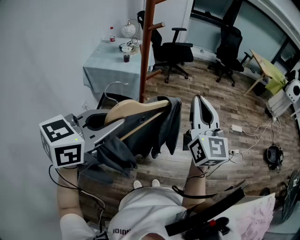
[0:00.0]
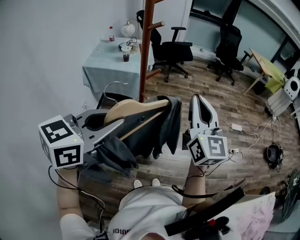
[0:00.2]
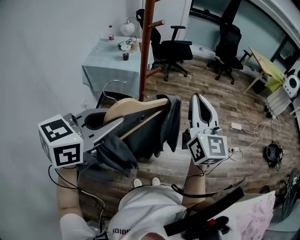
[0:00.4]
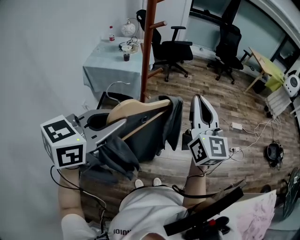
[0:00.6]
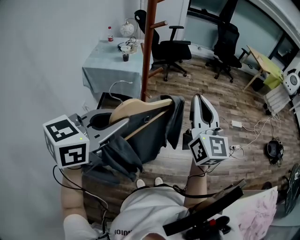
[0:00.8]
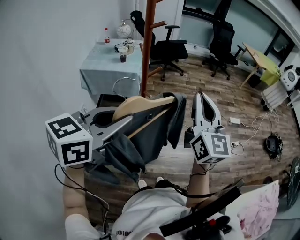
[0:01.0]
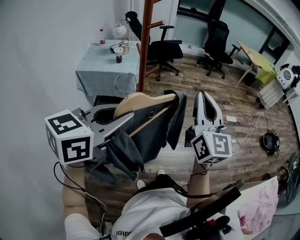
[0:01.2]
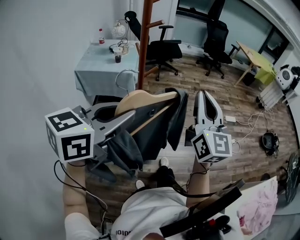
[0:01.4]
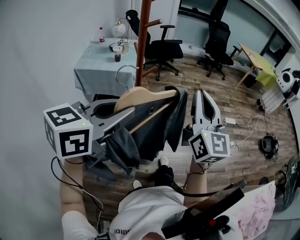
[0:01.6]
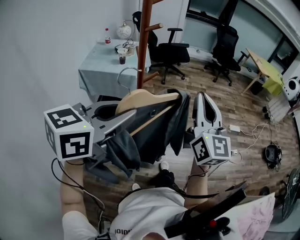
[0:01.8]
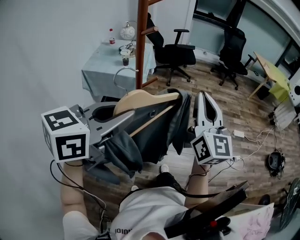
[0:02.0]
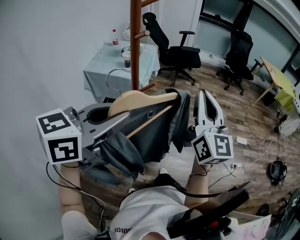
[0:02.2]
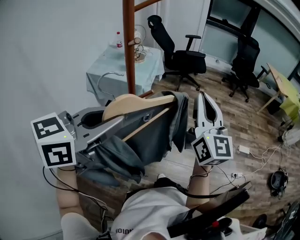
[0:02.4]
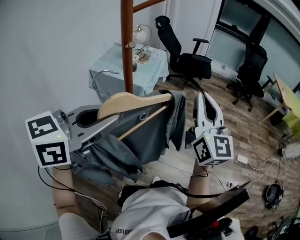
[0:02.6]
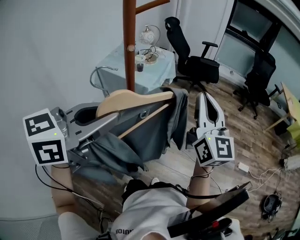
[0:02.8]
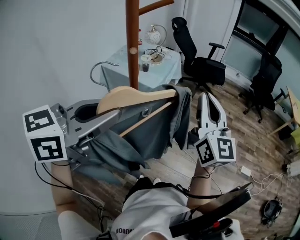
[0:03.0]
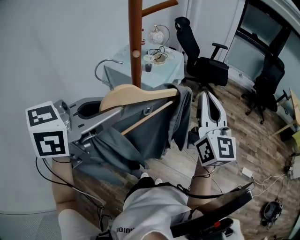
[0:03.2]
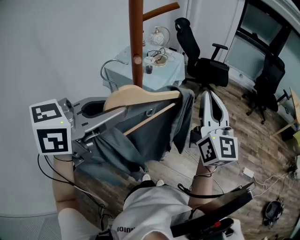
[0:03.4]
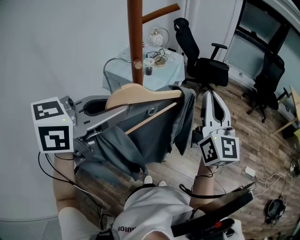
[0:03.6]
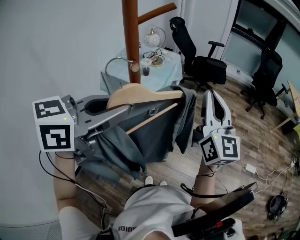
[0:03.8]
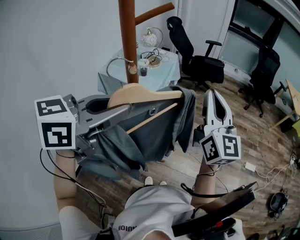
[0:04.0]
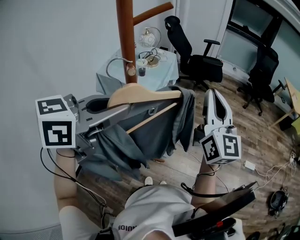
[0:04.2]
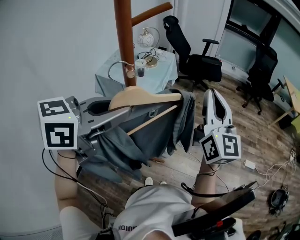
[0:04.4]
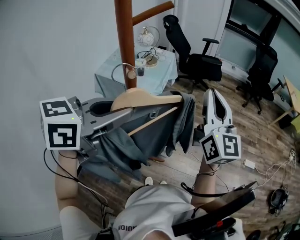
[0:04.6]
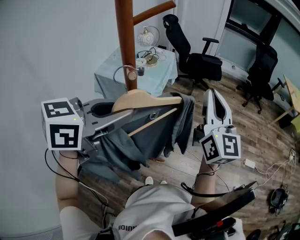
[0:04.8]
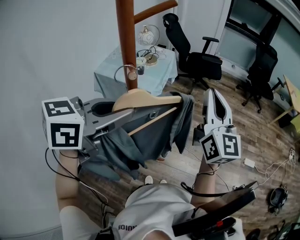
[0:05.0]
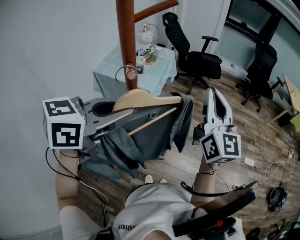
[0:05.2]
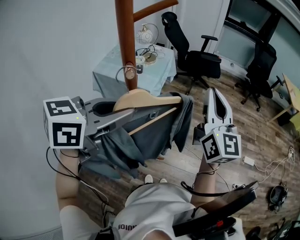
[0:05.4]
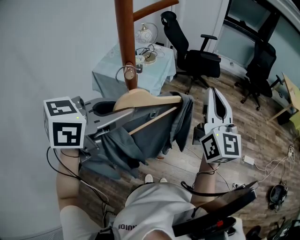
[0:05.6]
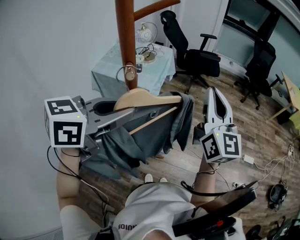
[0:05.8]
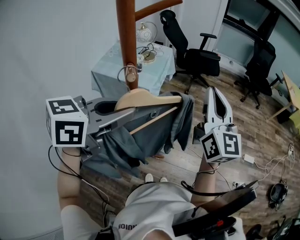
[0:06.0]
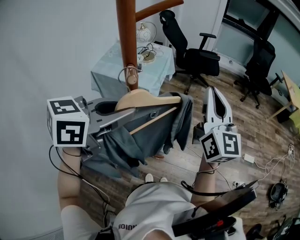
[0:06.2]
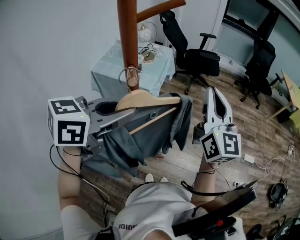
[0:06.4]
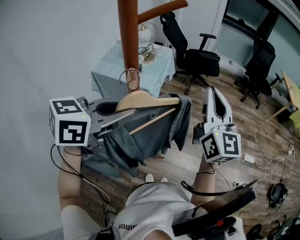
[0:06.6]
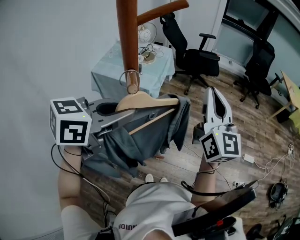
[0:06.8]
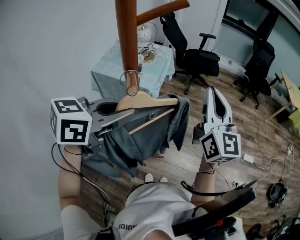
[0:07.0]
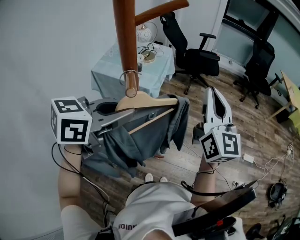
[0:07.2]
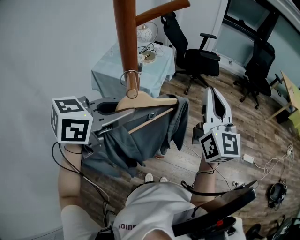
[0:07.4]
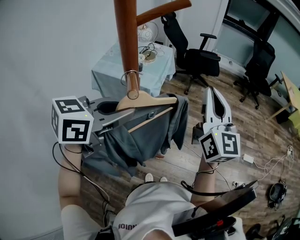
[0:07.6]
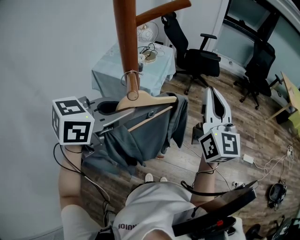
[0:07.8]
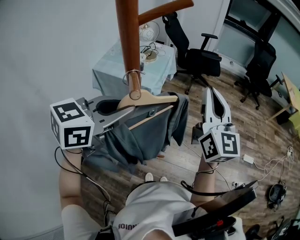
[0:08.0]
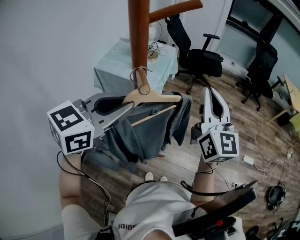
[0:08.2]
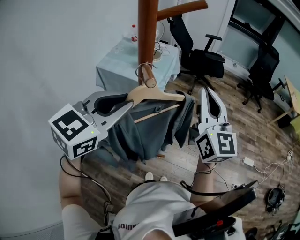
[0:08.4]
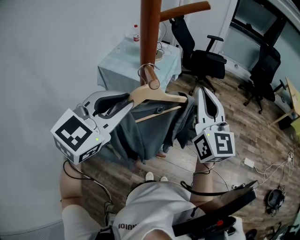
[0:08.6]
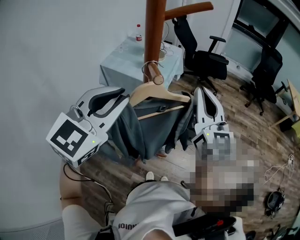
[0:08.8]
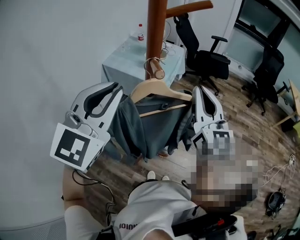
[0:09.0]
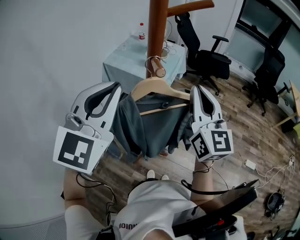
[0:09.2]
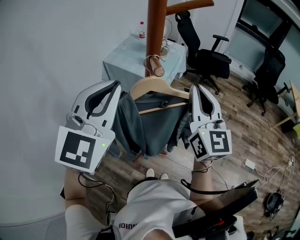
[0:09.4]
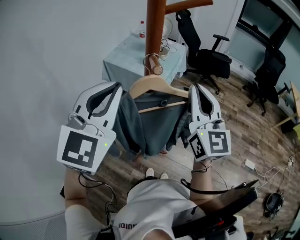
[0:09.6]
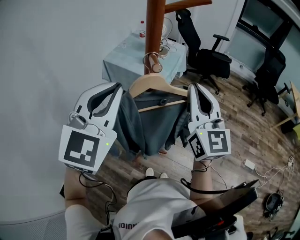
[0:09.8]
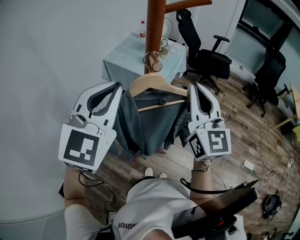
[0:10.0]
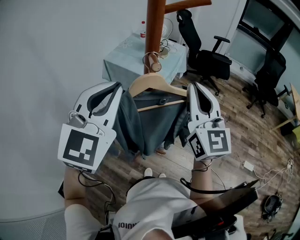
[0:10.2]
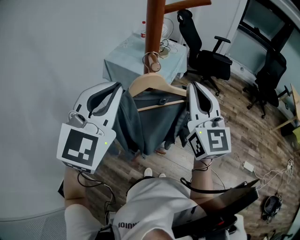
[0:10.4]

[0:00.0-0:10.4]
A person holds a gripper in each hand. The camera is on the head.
0.0 to 1.4 s: There are only small adjustments of the grippers.
1.4 to 3.0 s: The left gripper shifts by roughly 15 cm, and changes its angle by roughly 20 degrees. Meanwhile the right gripper changes place by roughly 25 cm, and changes its angle by roughly 30 degrees.
3.0 to 4.4 s: The left gripper heads forward, covering about 5 cm.
4.4 to 6.0 s: The grippers move only a little.
6.0 to 7.4 s: Both grippers stay about where they are.
7.4 to 9.0 s: The left gripper goes about 5 cm upward, and rotates roughly 50 degrees. The right gripper shifts about 5 cm to the left.
9.0 to 10.4 s: The grippers make only small movements.

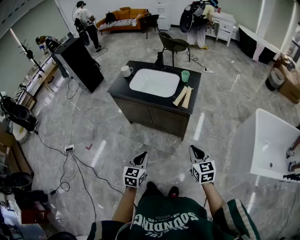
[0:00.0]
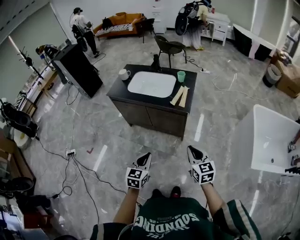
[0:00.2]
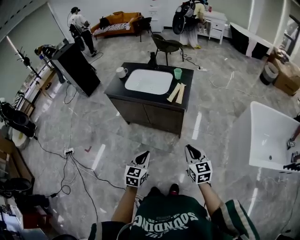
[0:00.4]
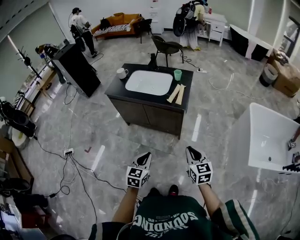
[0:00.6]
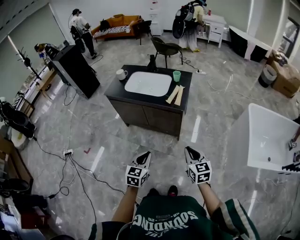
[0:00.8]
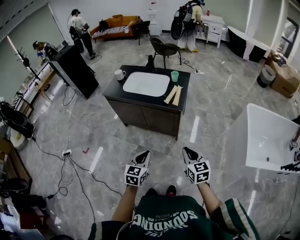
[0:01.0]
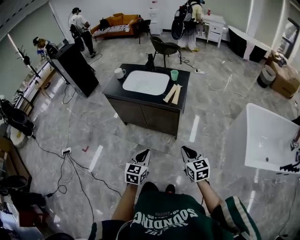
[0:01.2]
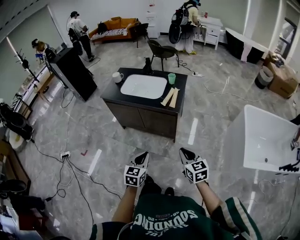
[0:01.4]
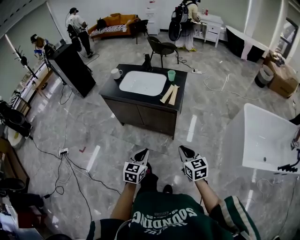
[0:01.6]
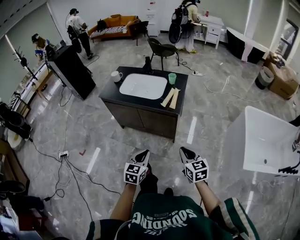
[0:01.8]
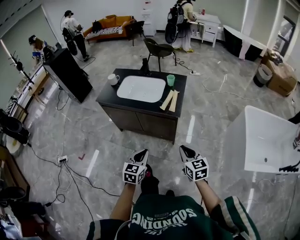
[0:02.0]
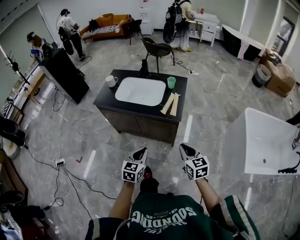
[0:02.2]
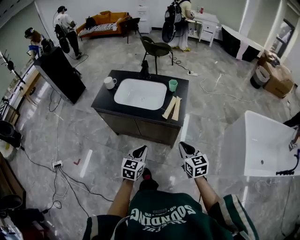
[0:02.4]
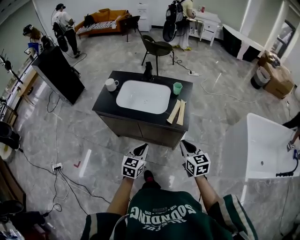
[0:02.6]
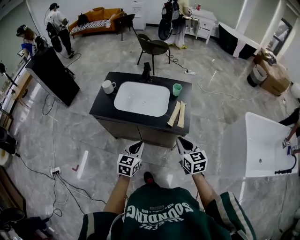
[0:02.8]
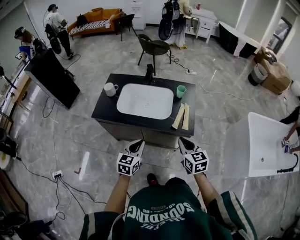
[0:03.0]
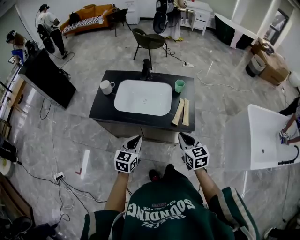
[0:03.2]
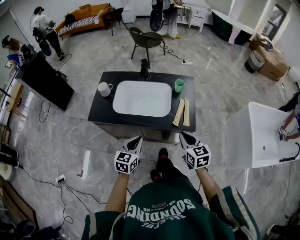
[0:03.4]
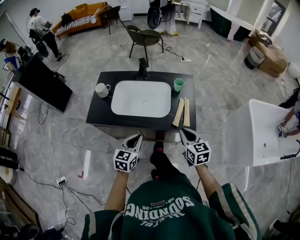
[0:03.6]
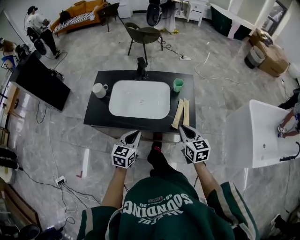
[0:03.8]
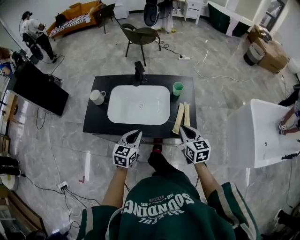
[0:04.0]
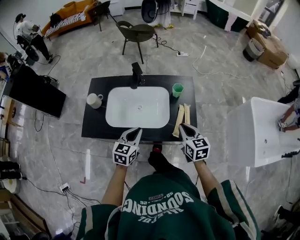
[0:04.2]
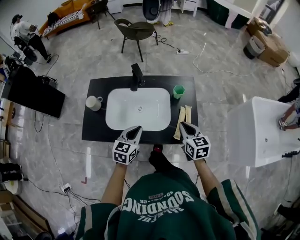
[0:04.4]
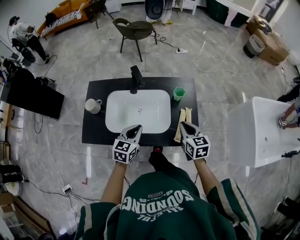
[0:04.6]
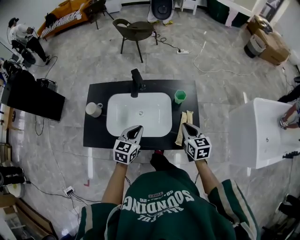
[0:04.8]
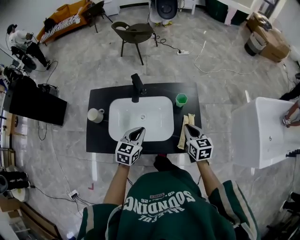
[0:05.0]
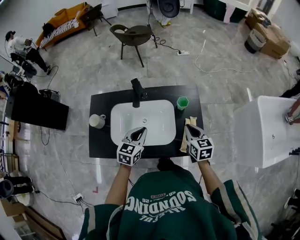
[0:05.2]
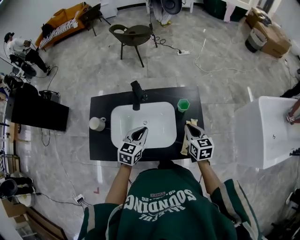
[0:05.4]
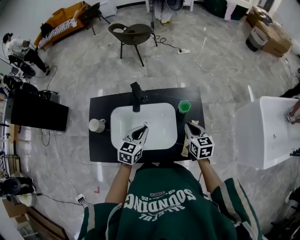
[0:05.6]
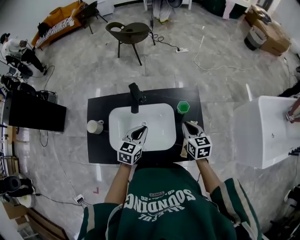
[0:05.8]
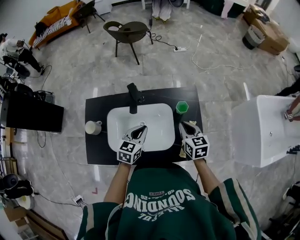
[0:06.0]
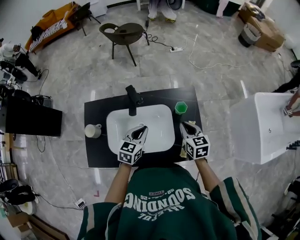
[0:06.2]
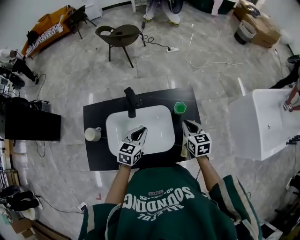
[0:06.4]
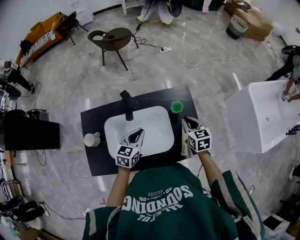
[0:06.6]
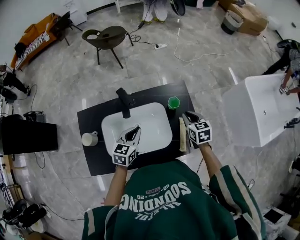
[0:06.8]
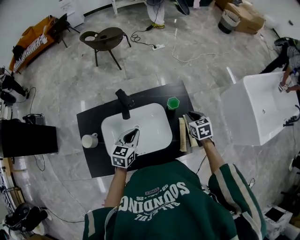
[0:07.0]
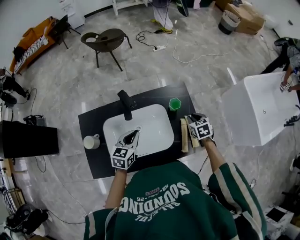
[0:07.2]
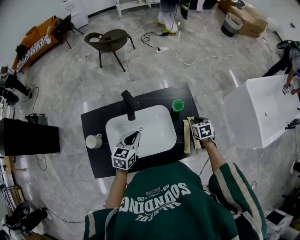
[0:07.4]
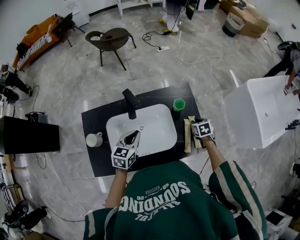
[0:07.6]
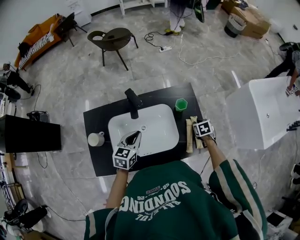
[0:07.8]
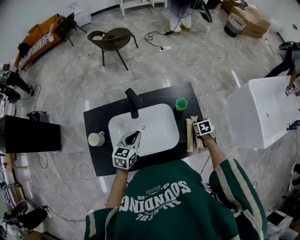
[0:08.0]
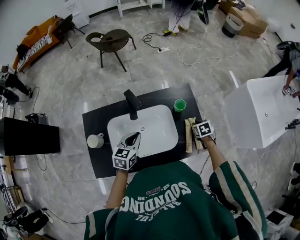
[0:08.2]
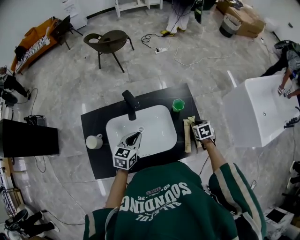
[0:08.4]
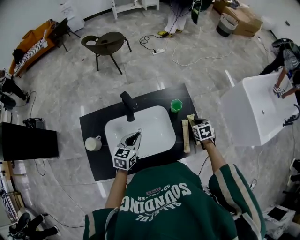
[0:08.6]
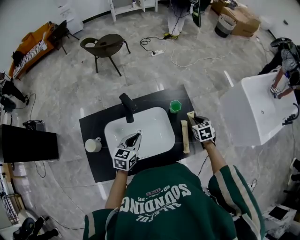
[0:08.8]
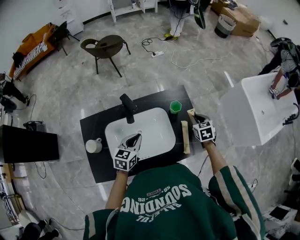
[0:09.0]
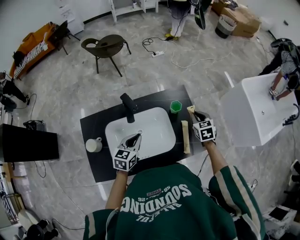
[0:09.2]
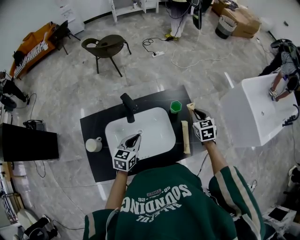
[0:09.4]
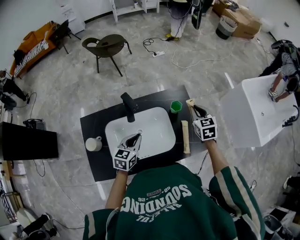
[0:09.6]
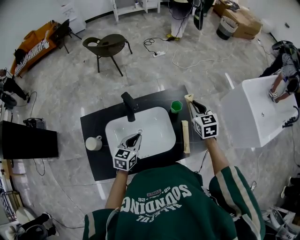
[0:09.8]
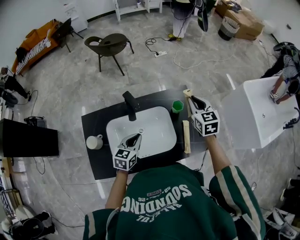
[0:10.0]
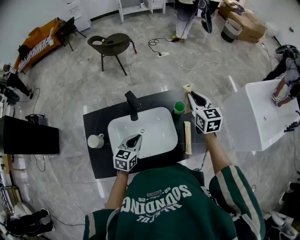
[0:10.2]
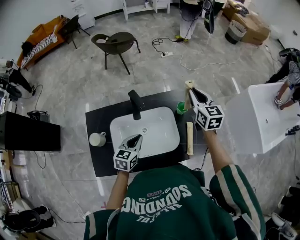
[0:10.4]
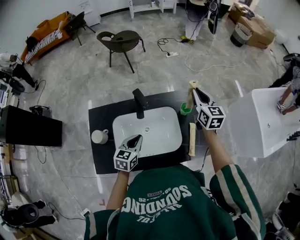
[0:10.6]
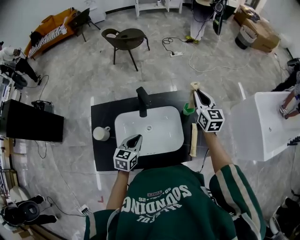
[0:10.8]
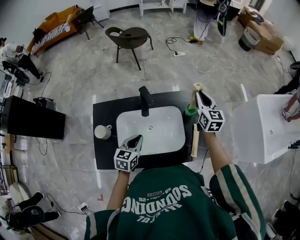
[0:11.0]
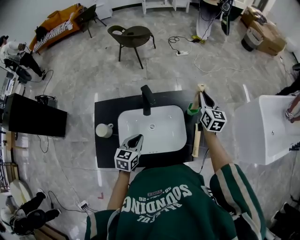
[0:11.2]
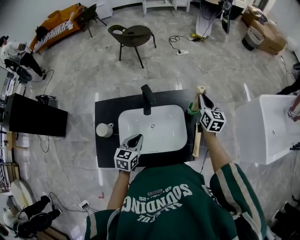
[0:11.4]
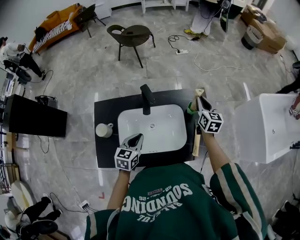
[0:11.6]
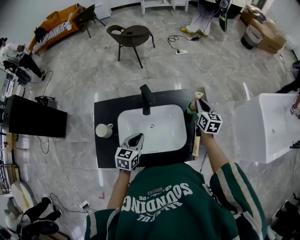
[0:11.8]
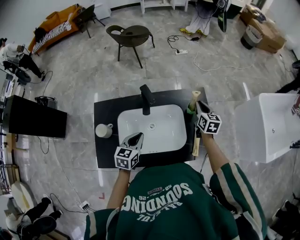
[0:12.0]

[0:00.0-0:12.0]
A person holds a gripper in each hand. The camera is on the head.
0.0 to 1.6 s: The right gripper heads backward, covering about 5 cm; the left gripper goes about 10 cm to the right.
1.6 to 3.0 s: Both grippers move forward and to the left, some 35 cm.
3.0 to 4.4 s: The two grippers go roughly 25 cm forward.
4.4 to 6.0 s: The grippers both shift forward by some 15 cm.
6.0 to 7.6 s: The left gripper shifts roughly 5 cm to the left; the right gripper is displaced downward and to the right by about 15 cm, and rotates roughly 30 degrees.
7.6 to 9.0 s: The right gripper heads upward, covering roughly 10 cm.
9.0 to 10.4 s: The right gripper goes roughly 20 cm upward and to the left, and points its fingers some 30 degrees further upward.
10.4 to 12.0 s: The right gripper shifts some 15 cm downward.

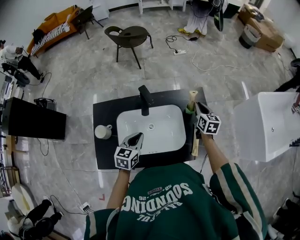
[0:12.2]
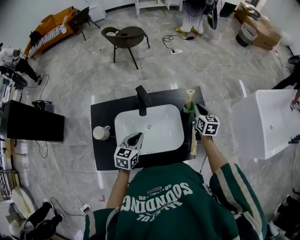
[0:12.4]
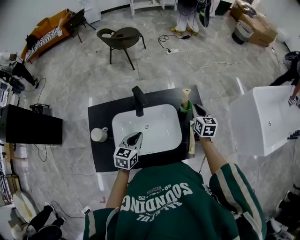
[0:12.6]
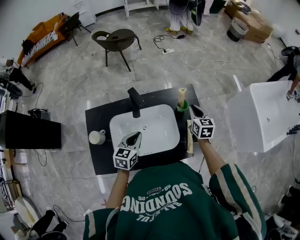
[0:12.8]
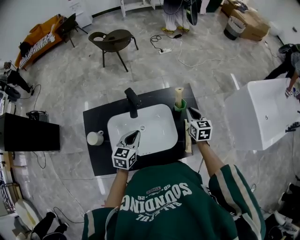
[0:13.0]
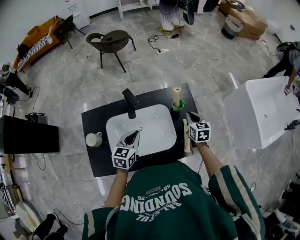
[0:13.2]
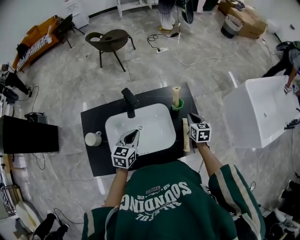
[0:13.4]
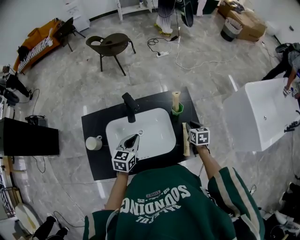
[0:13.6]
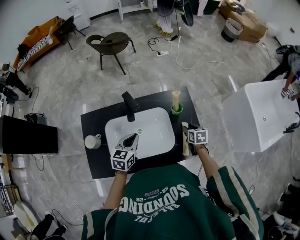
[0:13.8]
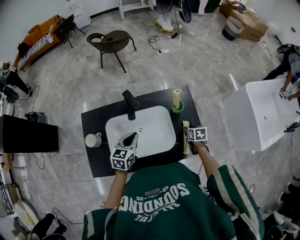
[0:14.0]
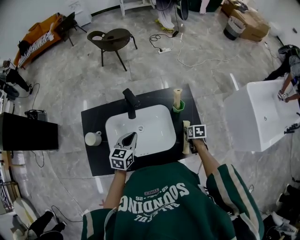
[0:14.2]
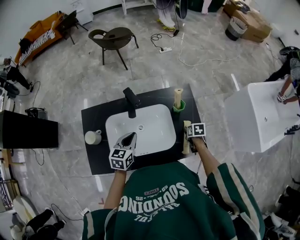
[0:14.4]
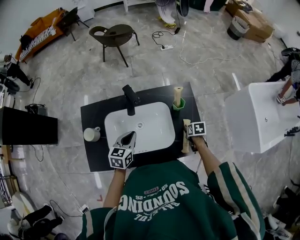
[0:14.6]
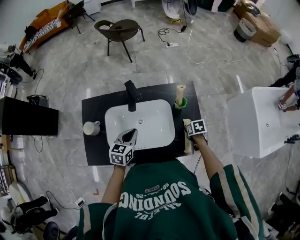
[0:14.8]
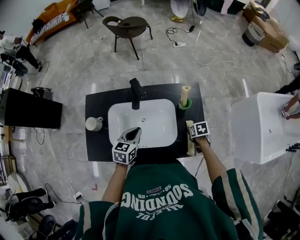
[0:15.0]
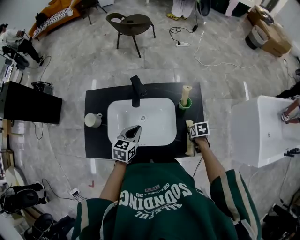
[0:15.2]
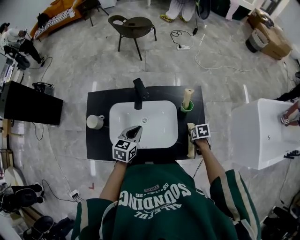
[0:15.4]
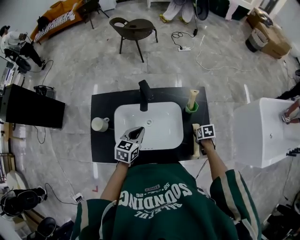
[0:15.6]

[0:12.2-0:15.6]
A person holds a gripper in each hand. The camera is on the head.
12.2 to 13.8 s: The right gripper moves downward, backward and to the right, approximately 15 cm, turns by roughly 20 degrees, and opens its fingers.
13.8 to 15.6 s: The right gripper moves downward, about 5 cm, and changes its angle by roughly 20 degrees.
